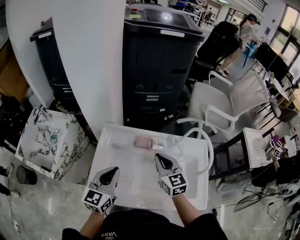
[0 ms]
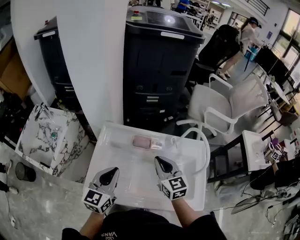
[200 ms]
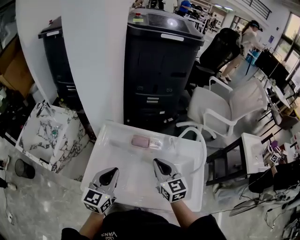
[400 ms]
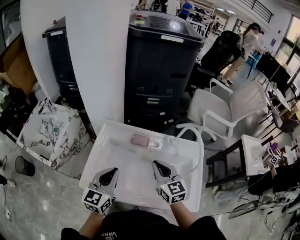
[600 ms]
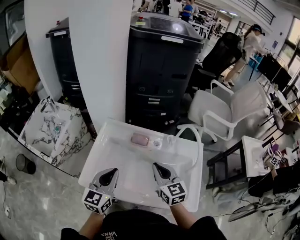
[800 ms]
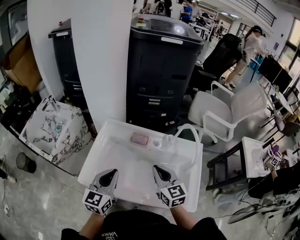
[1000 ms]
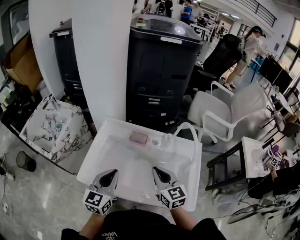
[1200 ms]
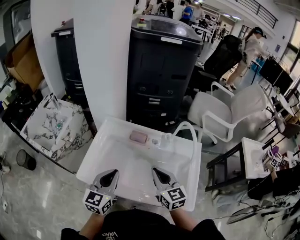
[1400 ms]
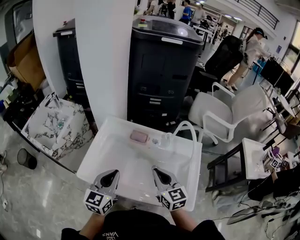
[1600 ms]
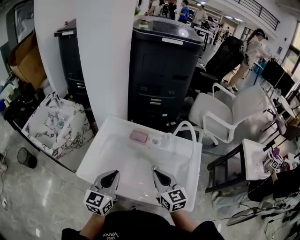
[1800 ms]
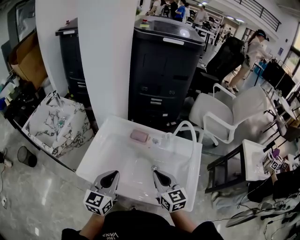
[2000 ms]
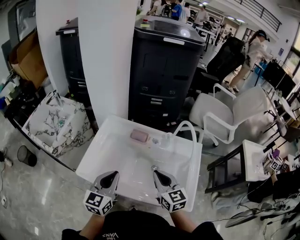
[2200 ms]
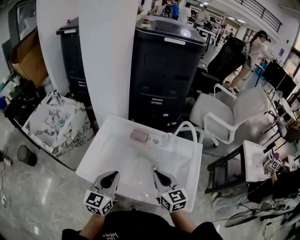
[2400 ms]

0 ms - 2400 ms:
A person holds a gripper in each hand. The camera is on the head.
0 ms - 1200 ms: The grippers both shift backward by approximately 10 cm.
1200 ms - 2400 ms: There are only small adjustments of the grippers.

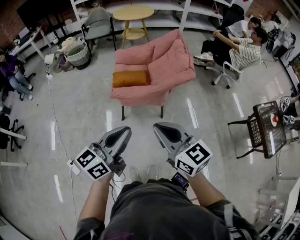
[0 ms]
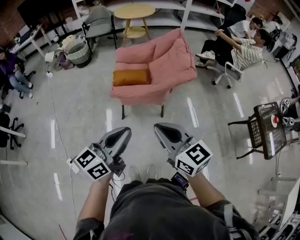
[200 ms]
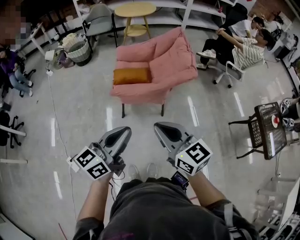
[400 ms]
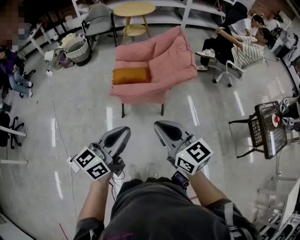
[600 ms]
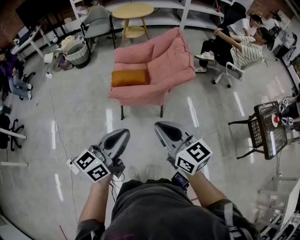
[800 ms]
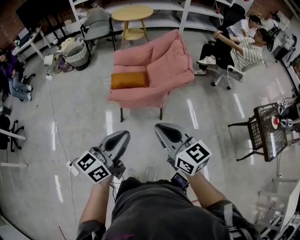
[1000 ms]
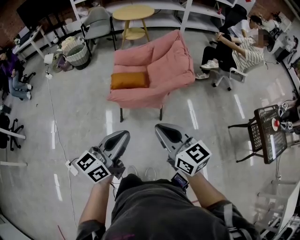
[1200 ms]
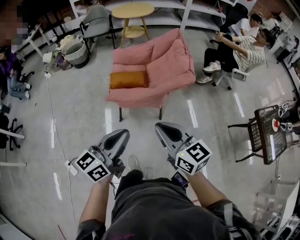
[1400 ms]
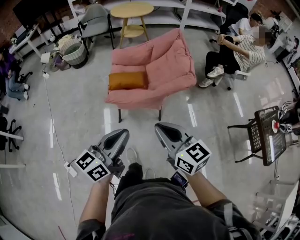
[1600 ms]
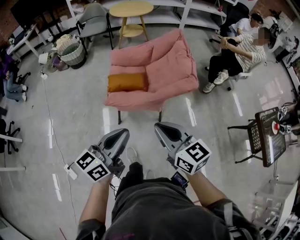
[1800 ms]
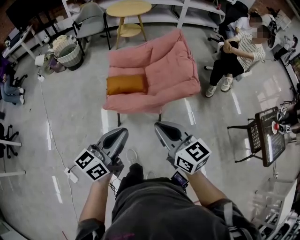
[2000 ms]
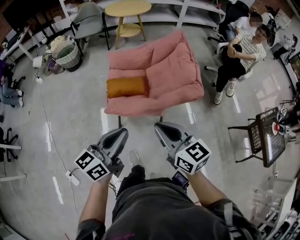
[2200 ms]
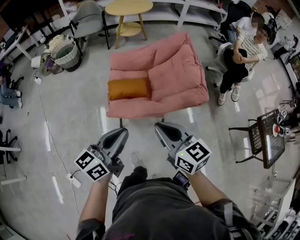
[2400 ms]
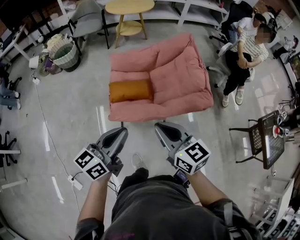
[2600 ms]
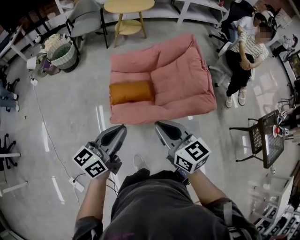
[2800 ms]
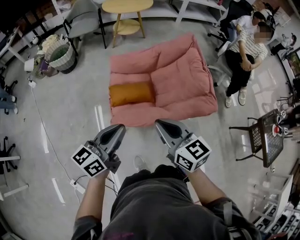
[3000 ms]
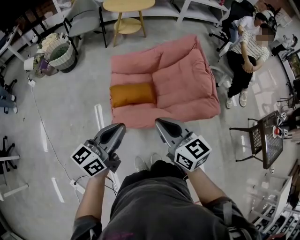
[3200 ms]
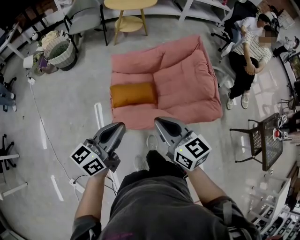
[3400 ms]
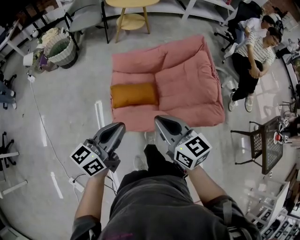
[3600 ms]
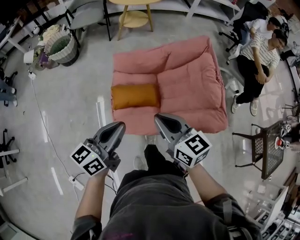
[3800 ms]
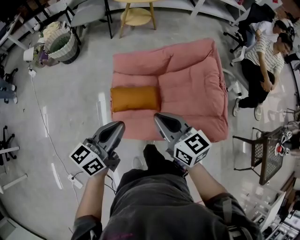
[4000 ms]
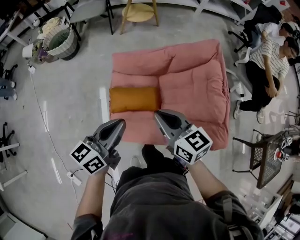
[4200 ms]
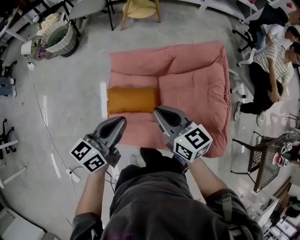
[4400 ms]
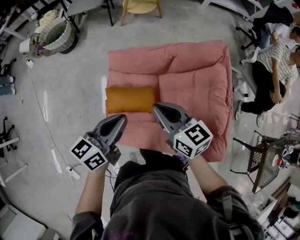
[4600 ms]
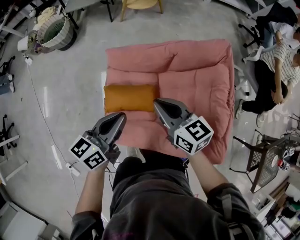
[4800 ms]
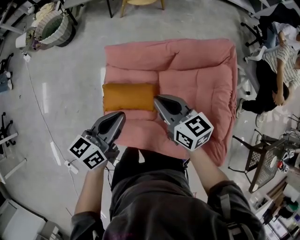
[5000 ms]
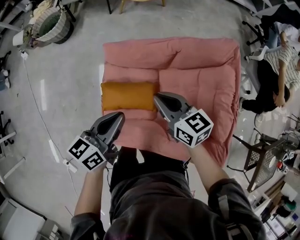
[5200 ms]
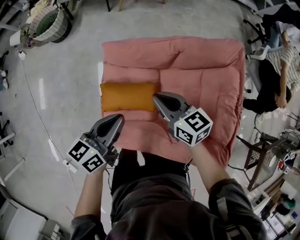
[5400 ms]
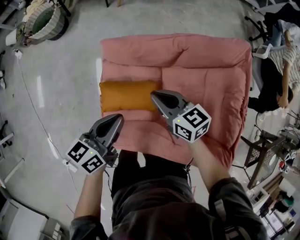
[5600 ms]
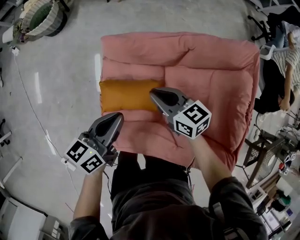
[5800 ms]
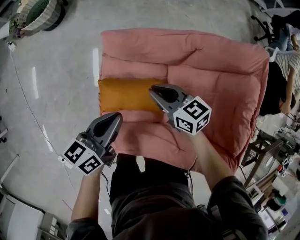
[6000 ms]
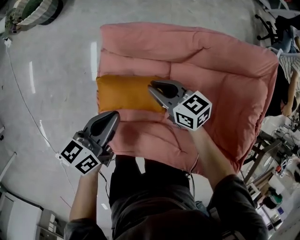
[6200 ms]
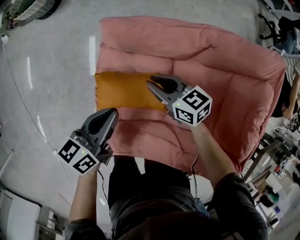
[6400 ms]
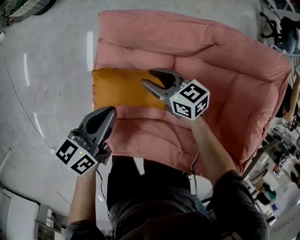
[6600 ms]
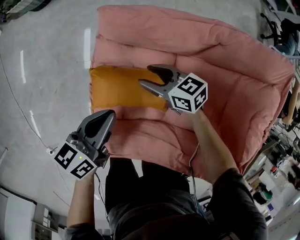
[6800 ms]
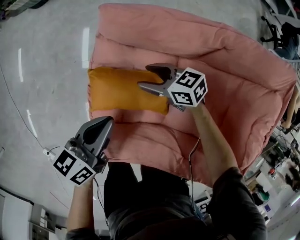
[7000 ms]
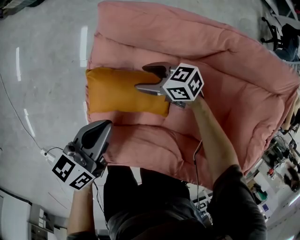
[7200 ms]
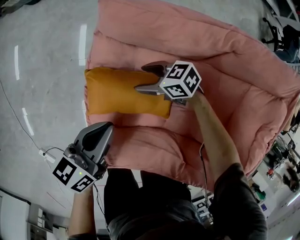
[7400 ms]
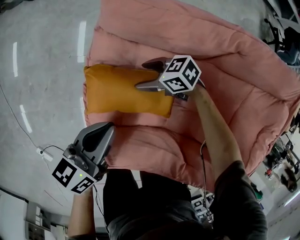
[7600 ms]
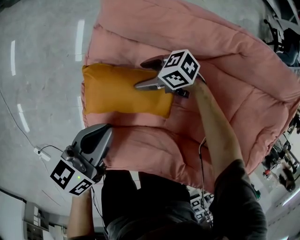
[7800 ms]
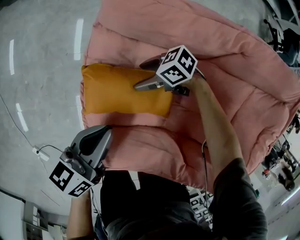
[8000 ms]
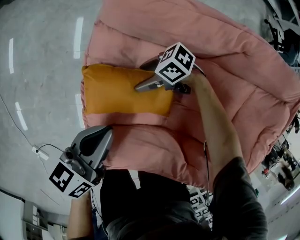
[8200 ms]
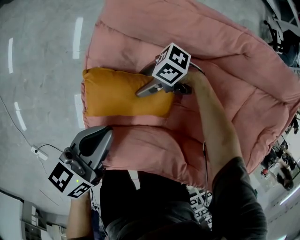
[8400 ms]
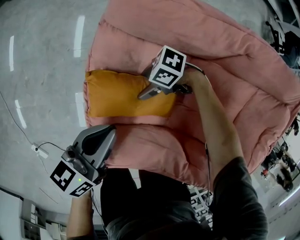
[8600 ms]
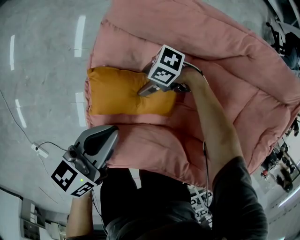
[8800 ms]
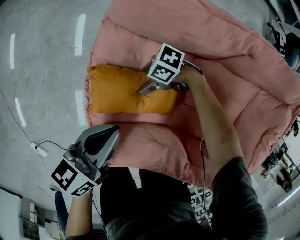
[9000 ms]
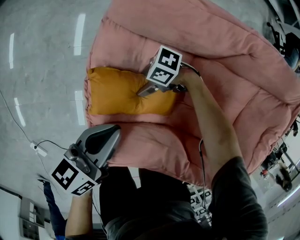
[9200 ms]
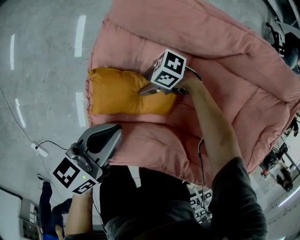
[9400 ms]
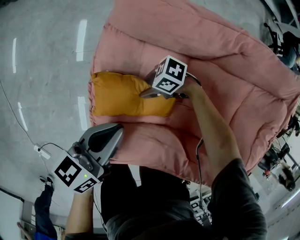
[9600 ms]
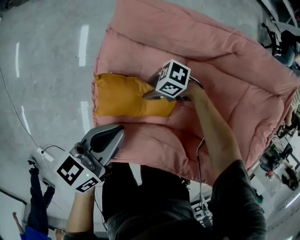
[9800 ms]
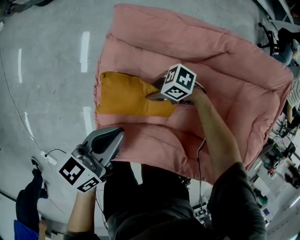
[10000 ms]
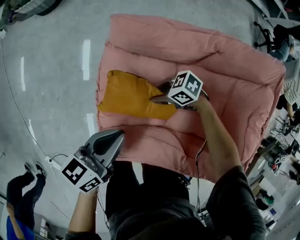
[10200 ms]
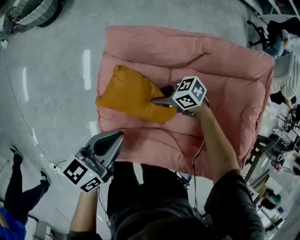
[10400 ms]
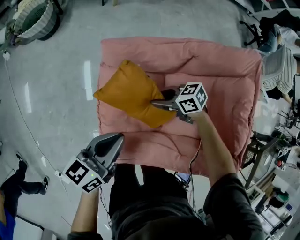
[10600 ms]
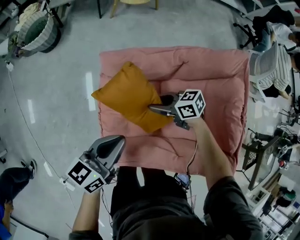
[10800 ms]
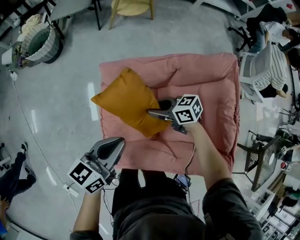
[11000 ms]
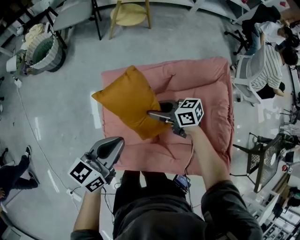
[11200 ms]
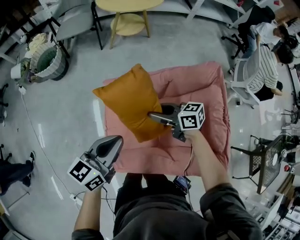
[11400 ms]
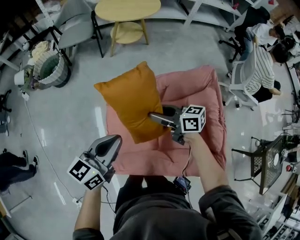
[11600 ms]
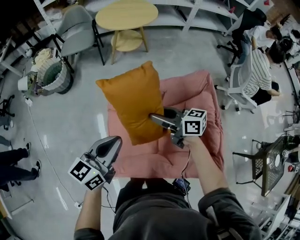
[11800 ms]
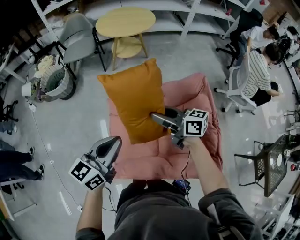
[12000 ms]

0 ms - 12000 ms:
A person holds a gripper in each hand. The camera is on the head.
0 ms - 1600 ms: Both grippers move forward, roughly 10 cm.
1600 ms - 3000 ms: Both grippers move forward and to the left, about 30 cm.
3000 ms - 4400 ms: The grippers both shift forward by approximately 25 cm.
4400 ms - 6000 ms: The grippers both shift downward and forward by about 25 cm.
6000 ms - 7600 ms: The left gripper travels downward by approximately 15 cm; the right gripper shifts about 25 cm downward, rotates approximately 40 degrees, and opens up.
7600 ms - 9000 ms: The right gripper shifts by approximately 10 cm, and turns by some 30 degrees.
9000 ms - 10400 ms: The grippers both shift upward by approximately 15 cm. The right gripper rotates approximately 30 degrees, and closes up.
10400 ms - 12000 ms: The two grippers go some 35 cm upward. The left gripper rotates about 30 degrees. Meanwhile the right gripper points its fingers roughly 30 degrees further upward.

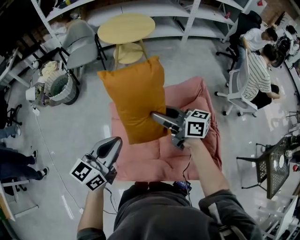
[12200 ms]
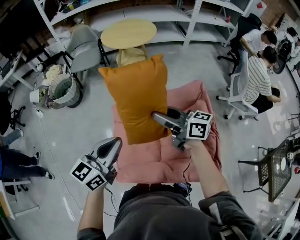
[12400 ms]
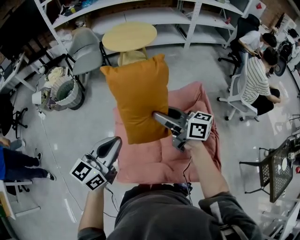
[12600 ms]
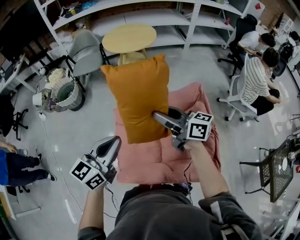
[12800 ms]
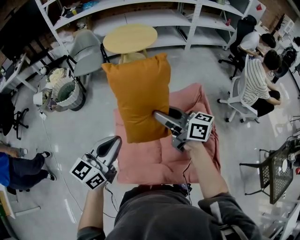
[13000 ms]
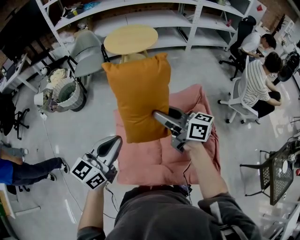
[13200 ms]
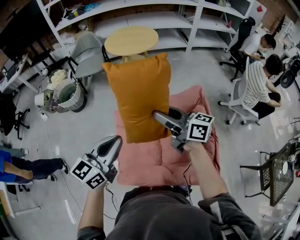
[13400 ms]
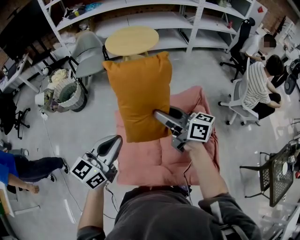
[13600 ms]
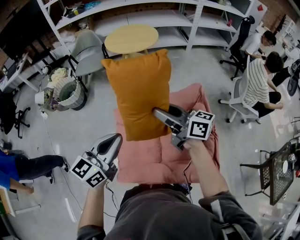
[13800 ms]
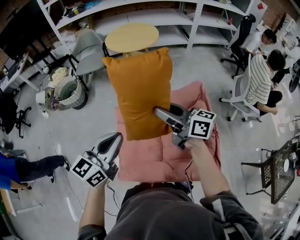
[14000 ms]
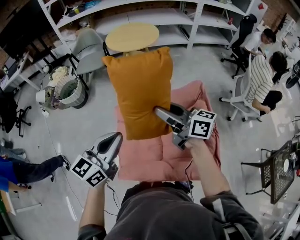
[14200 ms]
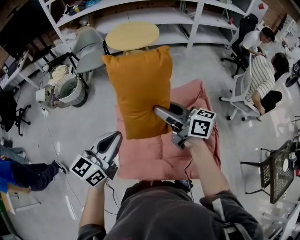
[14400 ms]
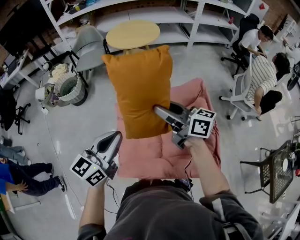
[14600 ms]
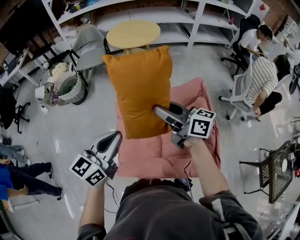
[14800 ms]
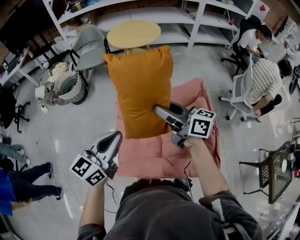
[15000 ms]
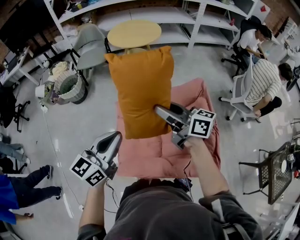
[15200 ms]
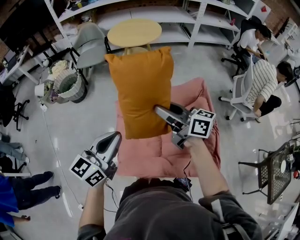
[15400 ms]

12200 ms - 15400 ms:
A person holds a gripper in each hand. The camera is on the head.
12200 ms - 13800 ms: Both grippers travel together upward, about 5 cm.
13800 ms - 15400 ms: There are only small adjustments of the grippers.

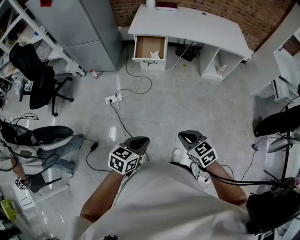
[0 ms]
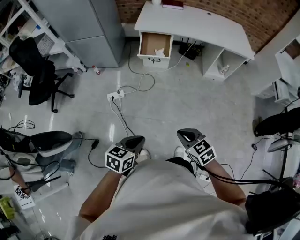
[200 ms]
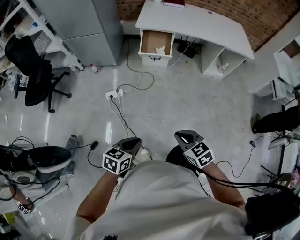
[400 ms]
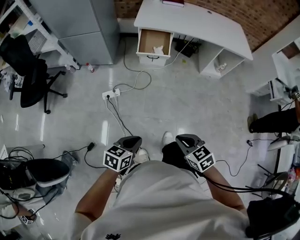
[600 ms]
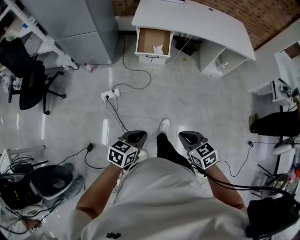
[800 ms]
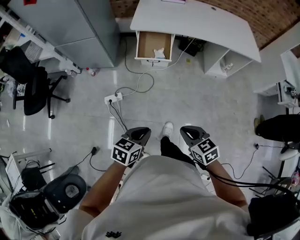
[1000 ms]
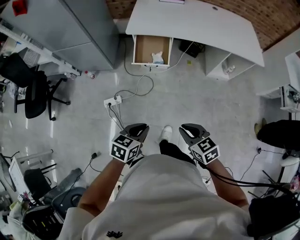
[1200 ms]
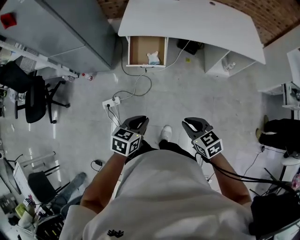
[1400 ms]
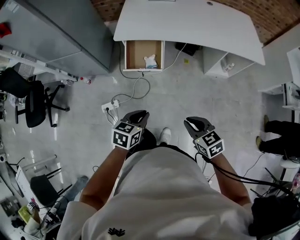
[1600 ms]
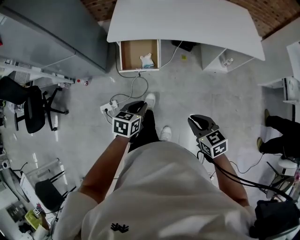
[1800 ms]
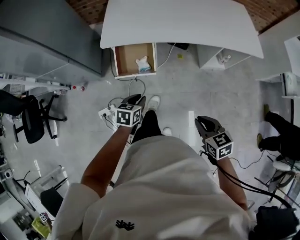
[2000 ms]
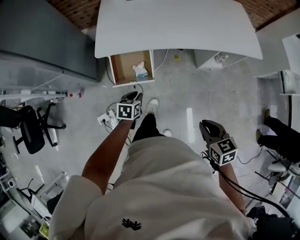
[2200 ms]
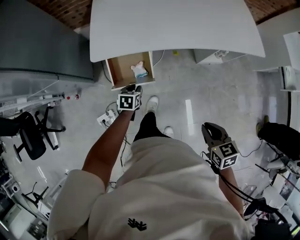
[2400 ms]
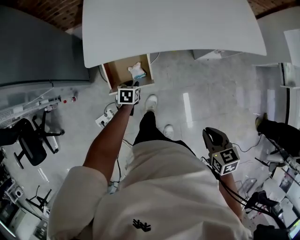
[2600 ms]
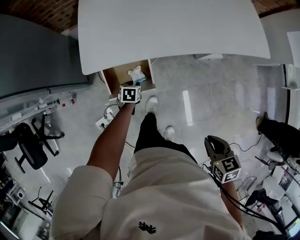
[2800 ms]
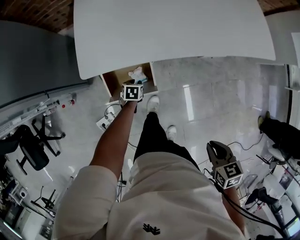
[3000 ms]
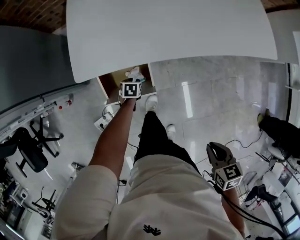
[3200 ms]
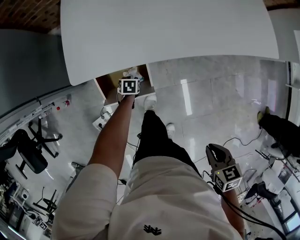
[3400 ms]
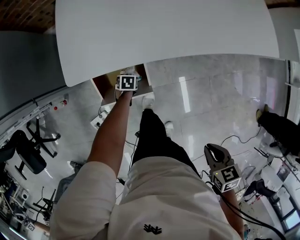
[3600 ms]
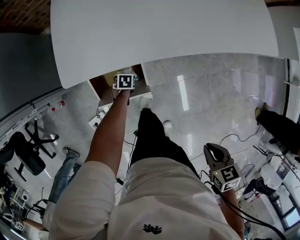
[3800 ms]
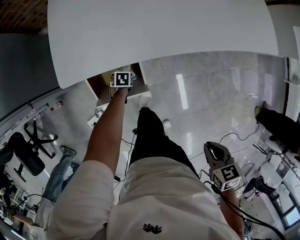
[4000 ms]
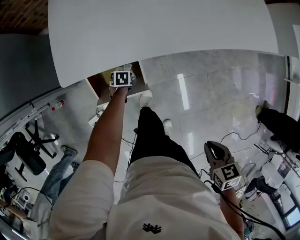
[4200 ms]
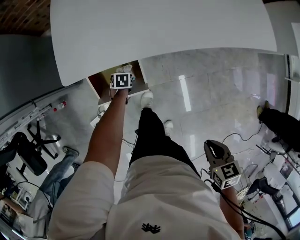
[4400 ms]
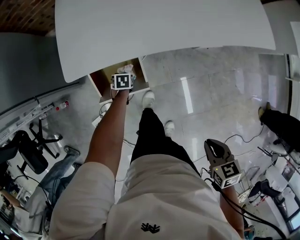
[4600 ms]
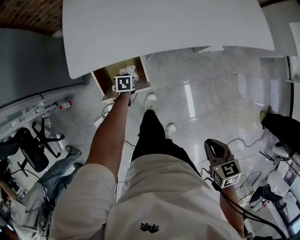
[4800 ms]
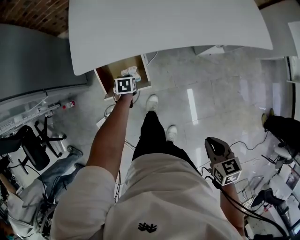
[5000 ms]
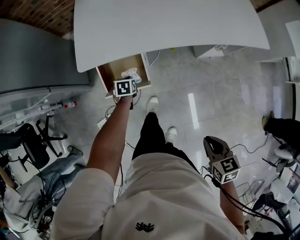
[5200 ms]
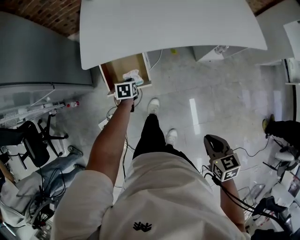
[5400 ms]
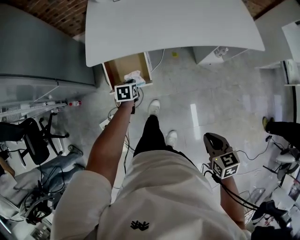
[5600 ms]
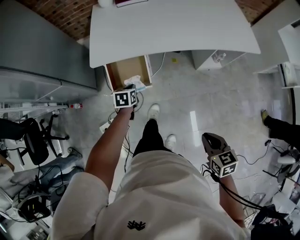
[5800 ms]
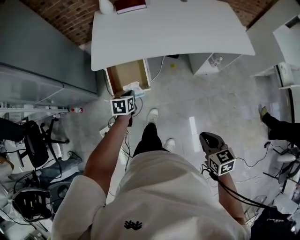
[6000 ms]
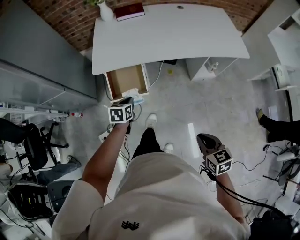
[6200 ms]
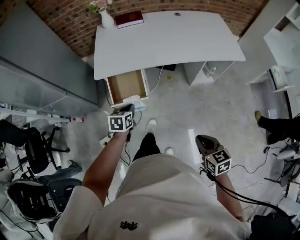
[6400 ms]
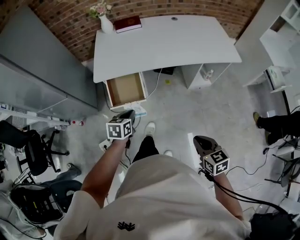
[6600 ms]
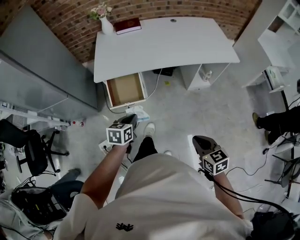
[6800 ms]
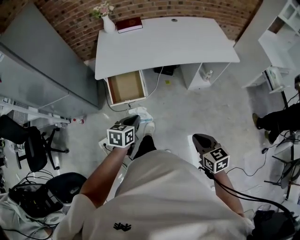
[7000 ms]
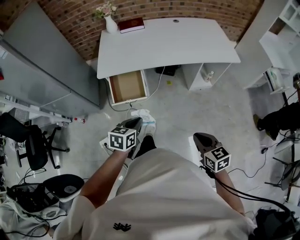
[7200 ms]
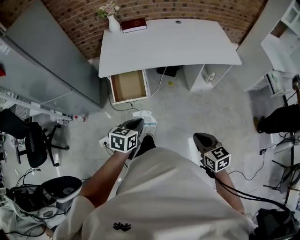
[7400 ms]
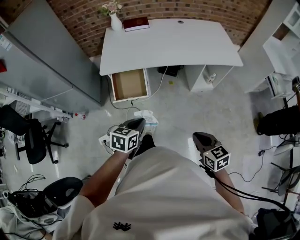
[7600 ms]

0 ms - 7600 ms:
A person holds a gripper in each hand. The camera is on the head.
0 ms - 1600 ms: Both grippers travel together forward, about 40 cm.
1600 ms - 3000 ms: The right gripper goes roughly 25 cm forward, and swivels about 40 degrees; the left gripper is displaced forward and downward by approximately 60 cm, changes its angle by some 20 degrees, and opens up.
3000 ms - 4600 ms: The left gripper moves downward, some 5 cm, and closes up. Meanwhile the right gripper shifts by roughly 5 cm.
4600 ms - 6000 ms: The left gripper heads upward and backward, covering roughly 40 cm, and rotates about 20 degrees. The right gripper goes about 20 cm backward and upward, and swivels approximately 20 degrees.
6000 ms - 7600 ms: The left gripper moves backward, upward and to the right, roughly 30 cm, while the right gripper heads backward and upward, covering some 10 cm.
